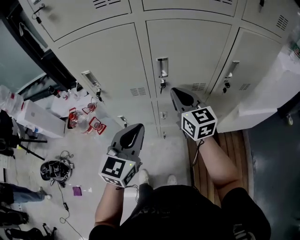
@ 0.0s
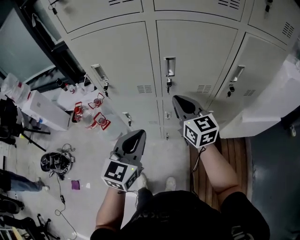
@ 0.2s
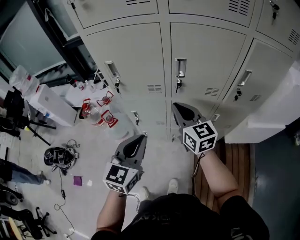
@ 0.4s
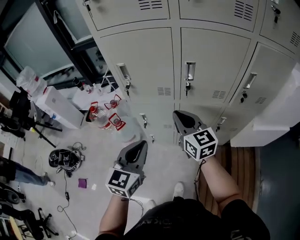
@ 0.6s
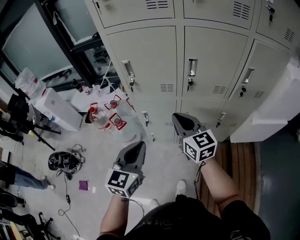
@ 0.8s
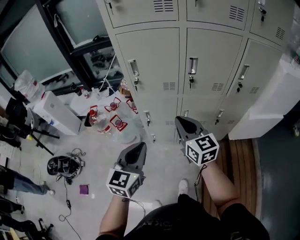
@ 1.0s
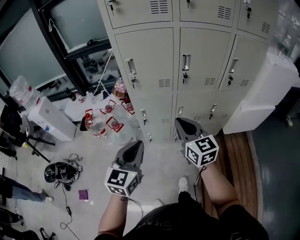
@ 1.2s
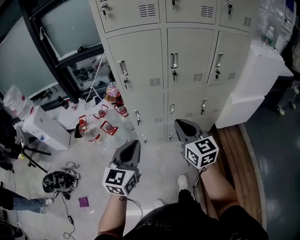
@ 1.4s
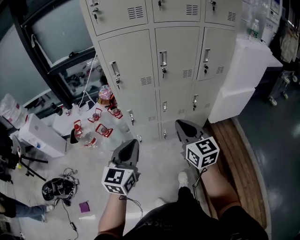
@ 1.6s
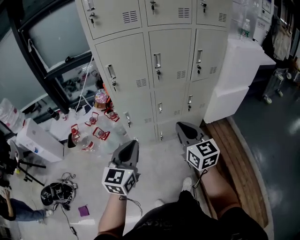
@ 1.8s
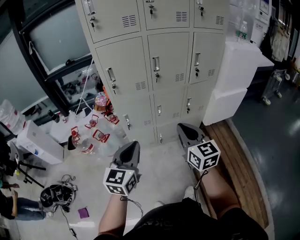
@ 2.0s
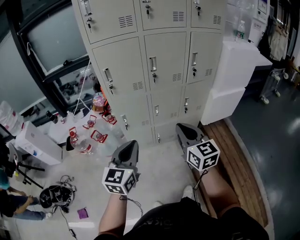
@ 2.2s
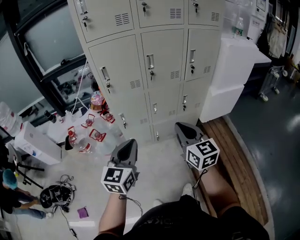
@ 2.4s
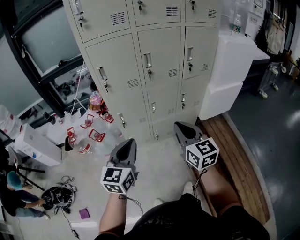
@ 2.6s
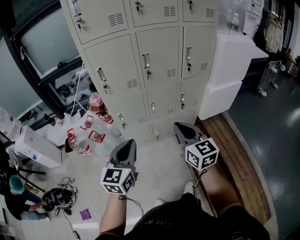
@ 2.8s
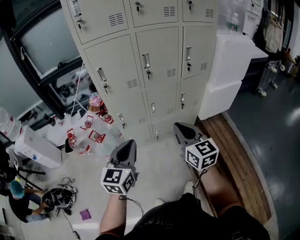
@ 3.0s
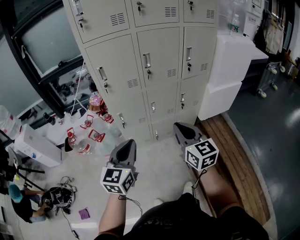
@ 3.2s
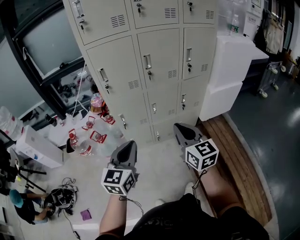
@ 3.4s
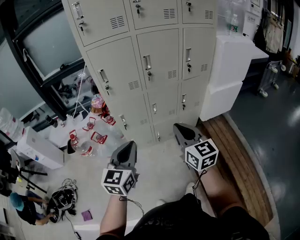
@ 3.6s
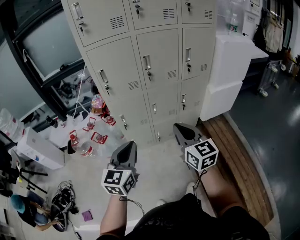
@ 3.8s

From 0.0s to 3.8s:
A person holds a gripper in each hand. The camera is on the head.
From 0.0s to 1.2s: The two grippers go about 25 cm backward and to the left.
From 1.2s to 2.6s: The right gripper travels backward and to the right by some 15 cm. The left gripper goes about 5 cm backward.
From 2.6s to 3.8s: The grippers move only a little.

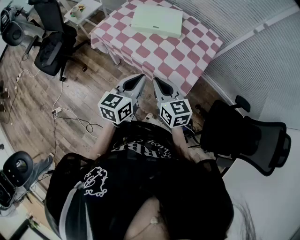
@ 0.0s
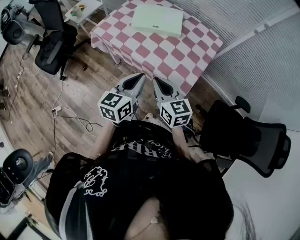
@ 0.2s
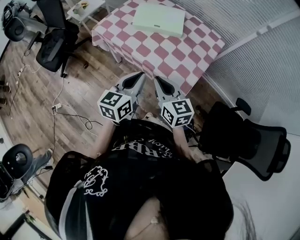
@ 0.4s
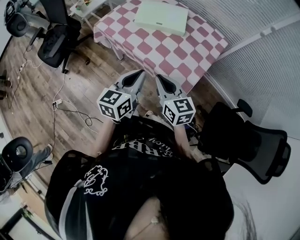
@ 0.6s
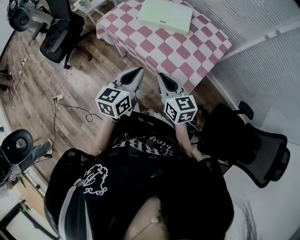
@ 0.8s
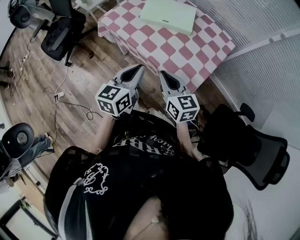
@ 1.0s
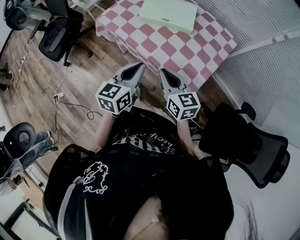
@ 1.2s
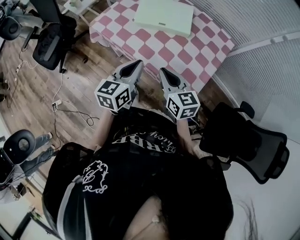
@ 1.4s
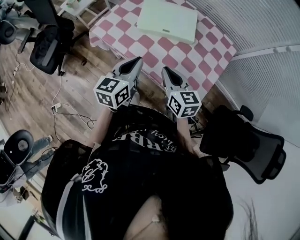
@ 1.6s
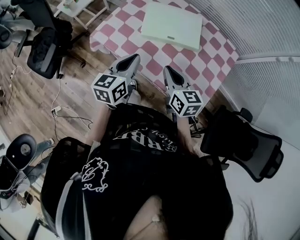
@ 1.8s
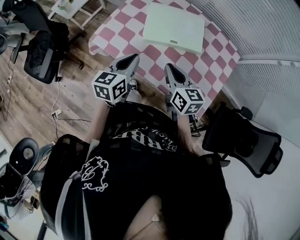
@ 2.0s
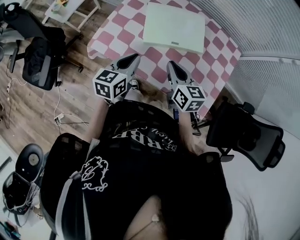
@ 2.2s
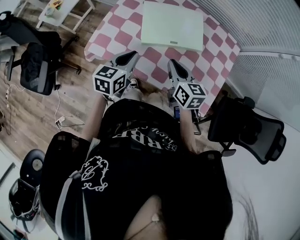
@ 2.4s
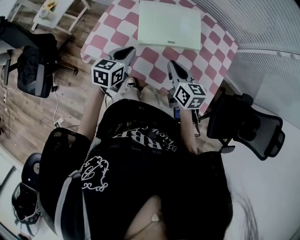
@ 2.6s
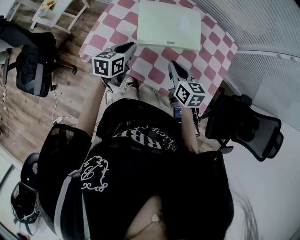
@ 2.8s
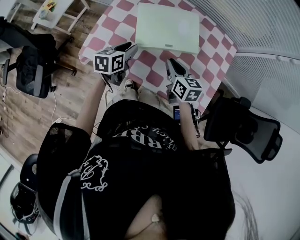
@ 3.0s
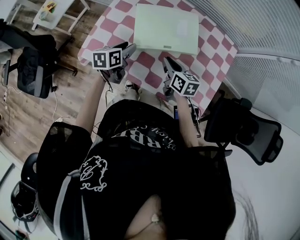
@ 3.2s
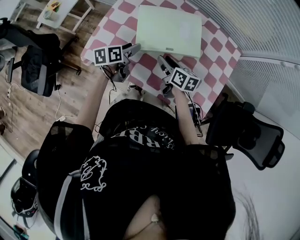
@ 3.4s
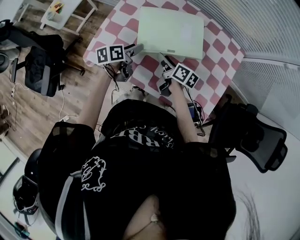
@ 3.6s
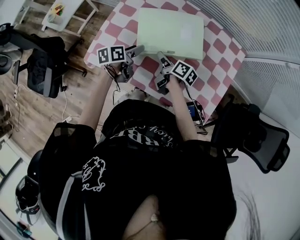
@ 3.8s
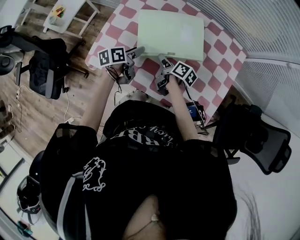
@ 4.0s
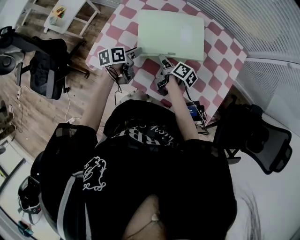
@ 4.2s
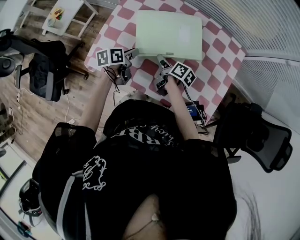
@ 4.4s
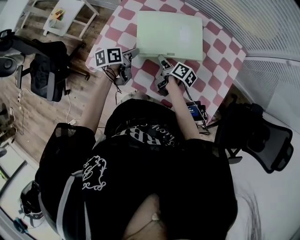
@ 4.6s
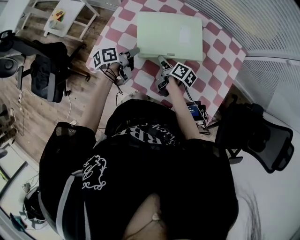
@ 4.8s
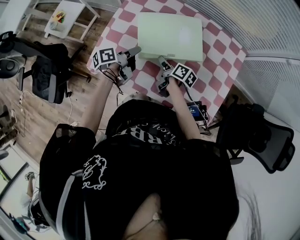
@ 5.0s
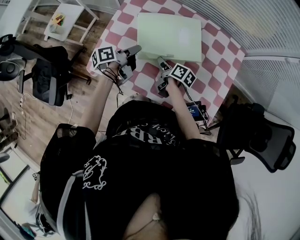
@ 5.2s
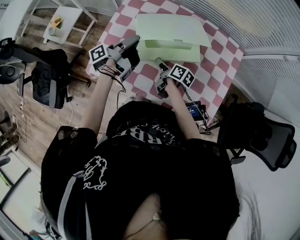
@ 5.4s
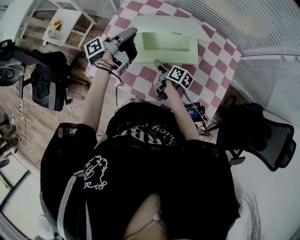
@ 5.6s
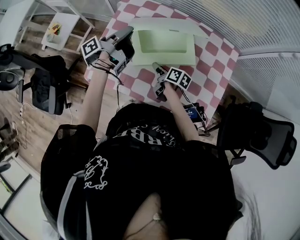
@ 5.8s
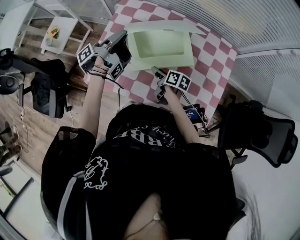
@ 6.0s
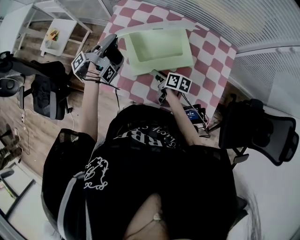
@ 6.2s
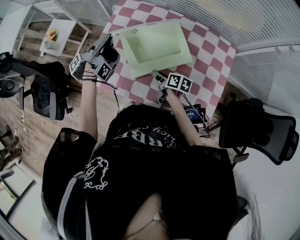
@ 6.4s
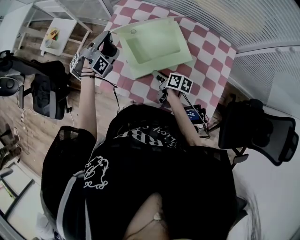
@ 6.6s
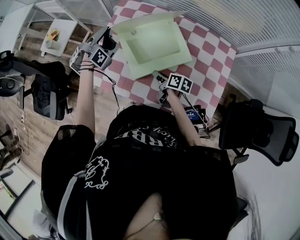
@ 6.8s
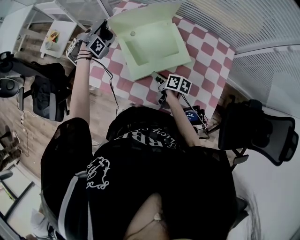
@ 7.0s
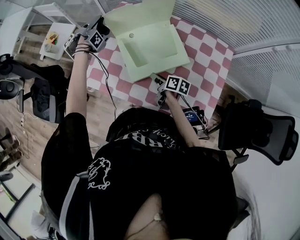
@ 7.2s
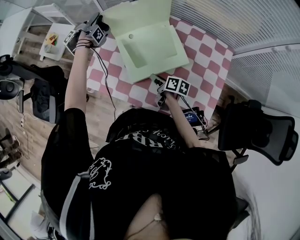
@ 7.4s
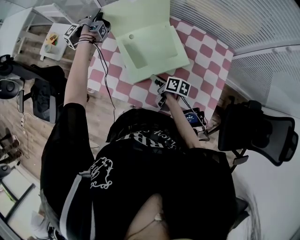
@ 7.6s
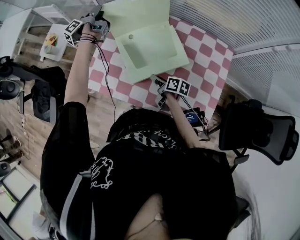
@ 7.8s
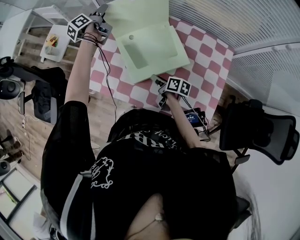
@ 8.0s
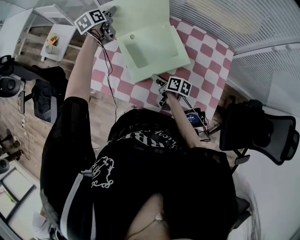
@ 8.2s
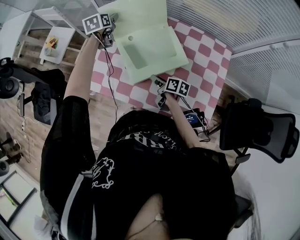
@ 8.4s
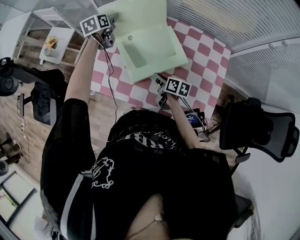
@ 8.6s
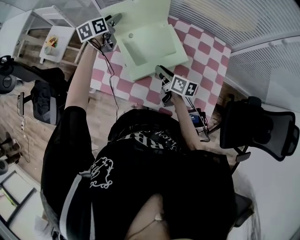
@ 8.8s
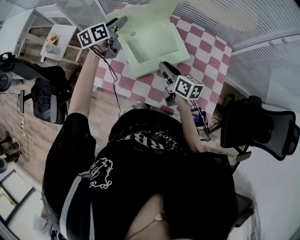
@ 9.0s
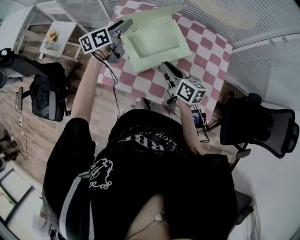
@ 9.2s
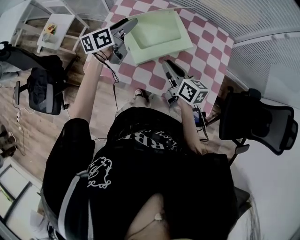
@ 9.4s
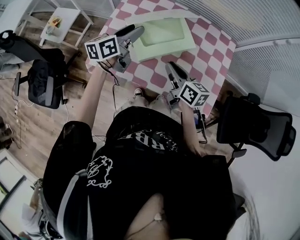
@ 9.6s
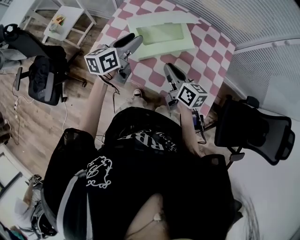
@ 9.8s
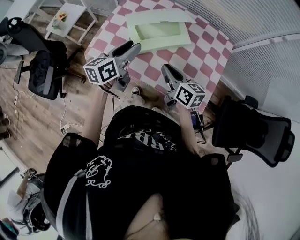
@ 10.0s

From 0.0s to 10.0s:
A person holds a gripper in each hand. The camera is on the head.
From 0.0s to 1.4s: Both grippers travel together forward, about 10 cm.
From 1.4s to 2.8s: The right gripper shifts roughly 20 cm forward, and swivels some 30 degrees. The left gripper travels forward, to the left and downward by some 30 cm, and rotates approximately 20 degrees.
From 2.8s to 4.2s: The right gripper heads downward and forward, covering roughly 15 cm, rolls clockwise, seen from behind, by about 50 degrees, and opens its fingers, while the left gripper is displaced downward and forward by approximately 10 cm, rotates roughly 30 degrees, and opens its fingers.
From 4.2s to 5.8s: The left gripper shifts about 20 cm upward and forward, tilts its fingers approximately 40 degrees upward, and closes its fingers.
From 5.8s to 7.2s: The left gripper goes roughly 15 cm forward and to the left, and rotates approximately 30 degrees.
From 7.2s to 8.6s: The right gripper closes; the left gripper is displaced to the right by some 5 cm, rotates around the line of its fingers by approximately 90 degrees, clockwise from behind, and opens.
From 8.6s to 10.0s: The left gripper shifts roughly 35 cm backward, and turns by about 30 degrees. The right gripper is displaced upward and backward by some 20 cm, and swivels some 30 degrees.

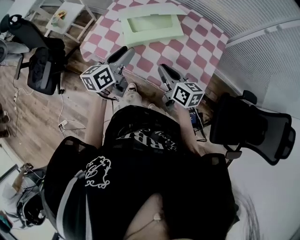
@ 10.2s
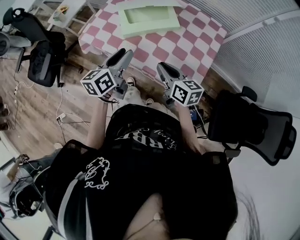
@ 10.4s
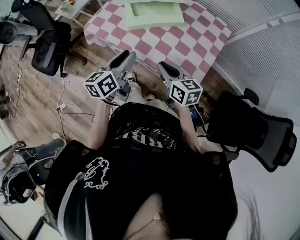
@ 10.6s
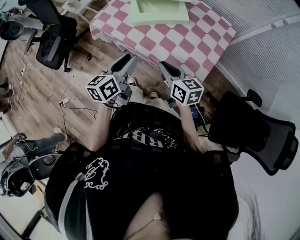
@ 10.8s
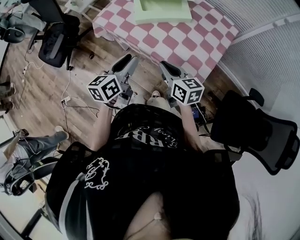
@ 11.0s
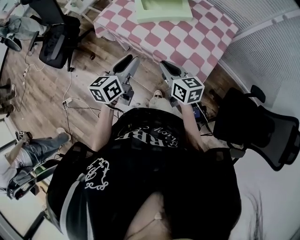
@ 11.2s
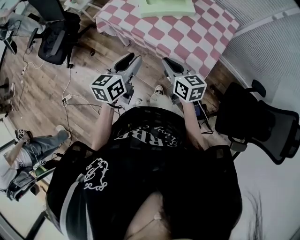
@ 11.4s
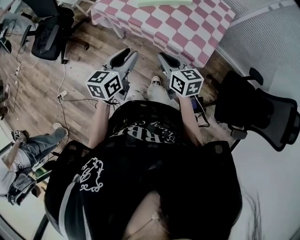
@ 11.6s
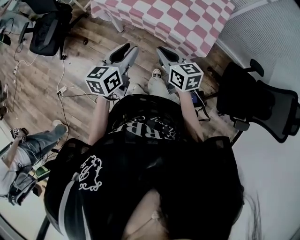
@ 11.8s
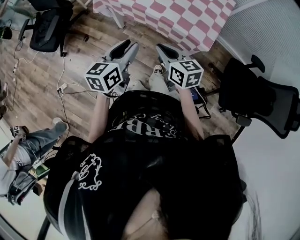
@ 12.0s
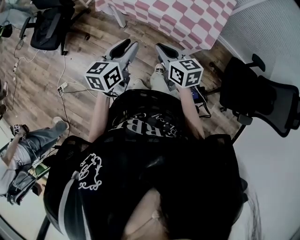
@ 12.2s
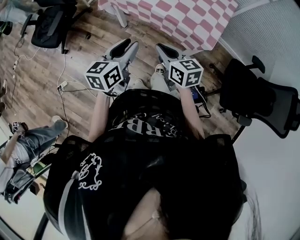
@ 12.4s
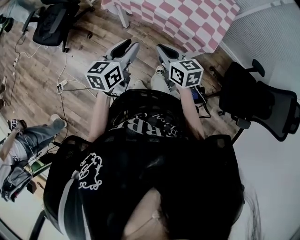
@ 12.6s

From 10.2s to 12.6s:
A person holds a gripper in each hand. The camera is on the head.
From 10.2s to 11.4s: Both grippers travel together backward, approximately 20 cm.
From 11.4s to 12.6s: Both grippers travel together backward and to the left, approximately 15 cm.

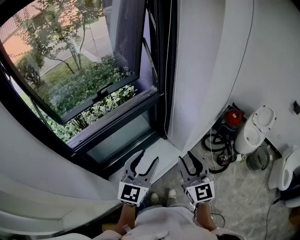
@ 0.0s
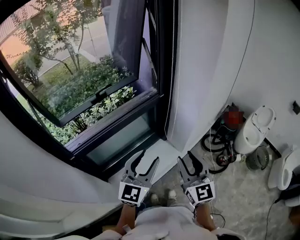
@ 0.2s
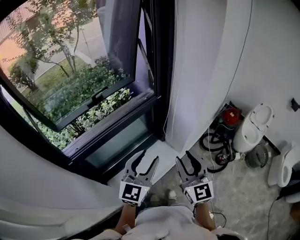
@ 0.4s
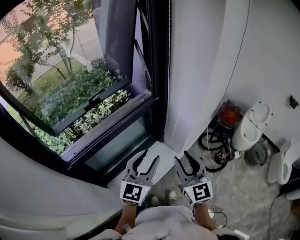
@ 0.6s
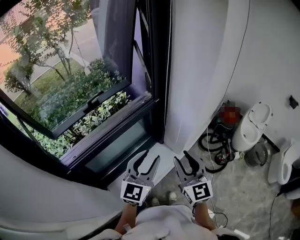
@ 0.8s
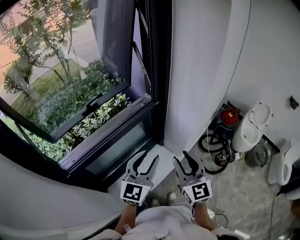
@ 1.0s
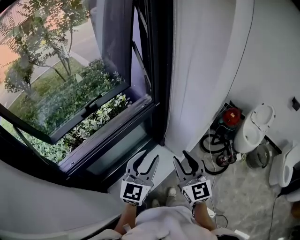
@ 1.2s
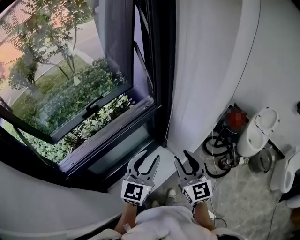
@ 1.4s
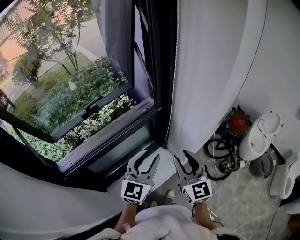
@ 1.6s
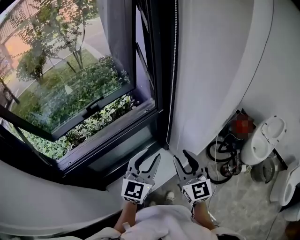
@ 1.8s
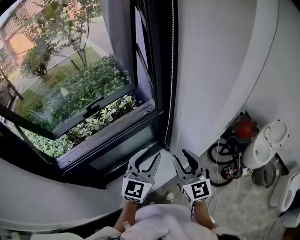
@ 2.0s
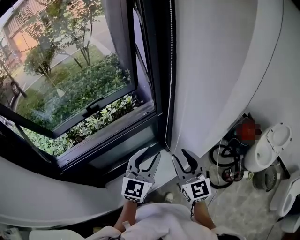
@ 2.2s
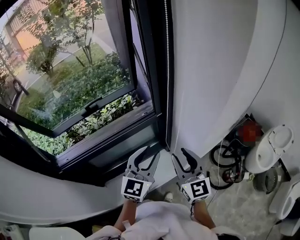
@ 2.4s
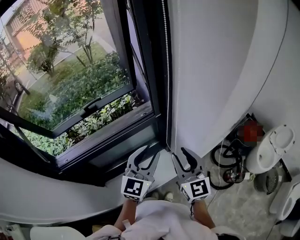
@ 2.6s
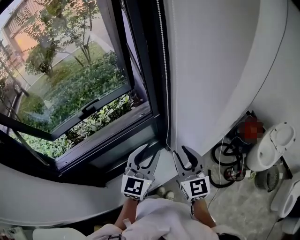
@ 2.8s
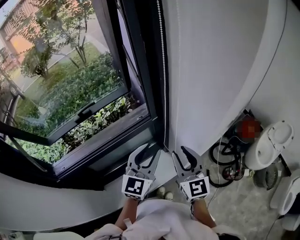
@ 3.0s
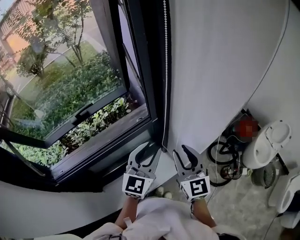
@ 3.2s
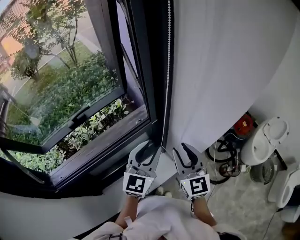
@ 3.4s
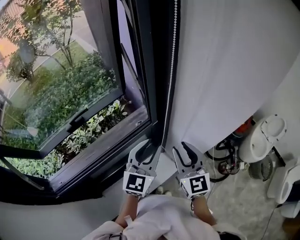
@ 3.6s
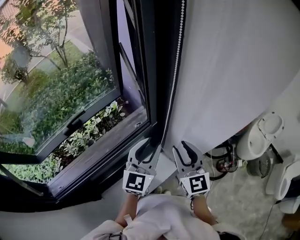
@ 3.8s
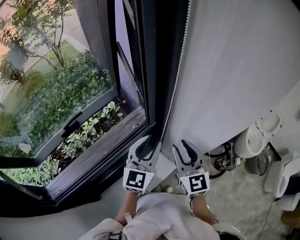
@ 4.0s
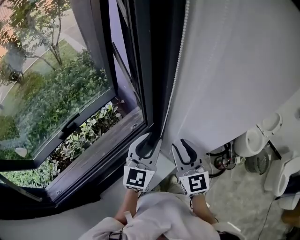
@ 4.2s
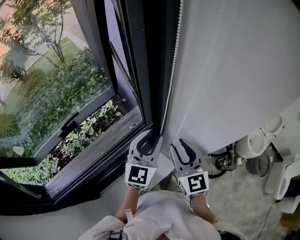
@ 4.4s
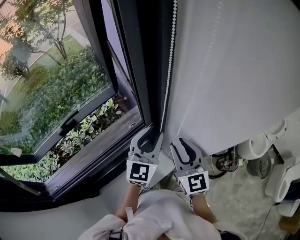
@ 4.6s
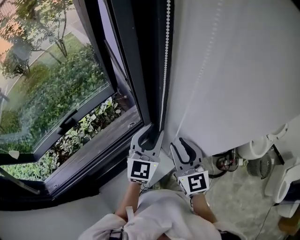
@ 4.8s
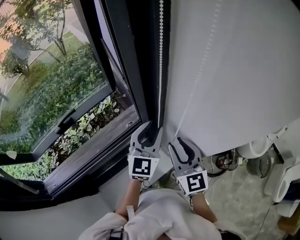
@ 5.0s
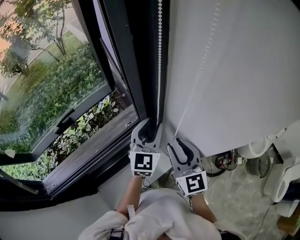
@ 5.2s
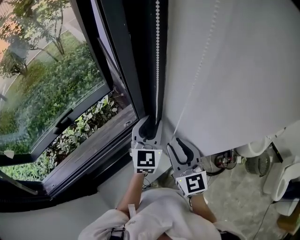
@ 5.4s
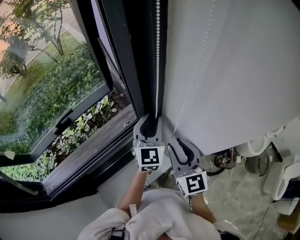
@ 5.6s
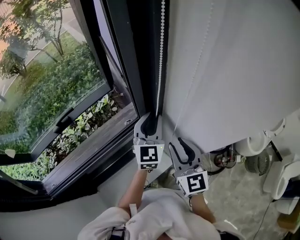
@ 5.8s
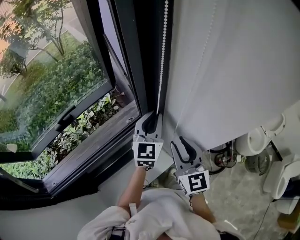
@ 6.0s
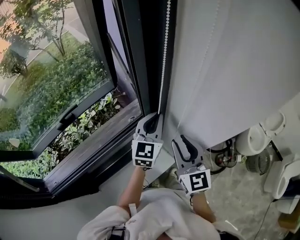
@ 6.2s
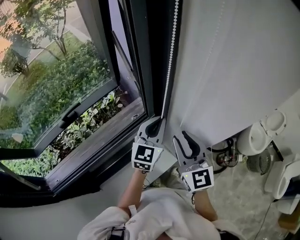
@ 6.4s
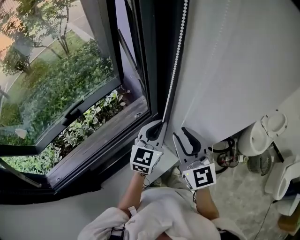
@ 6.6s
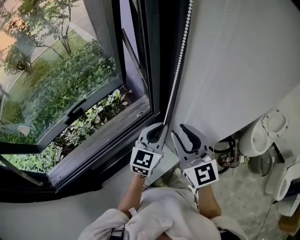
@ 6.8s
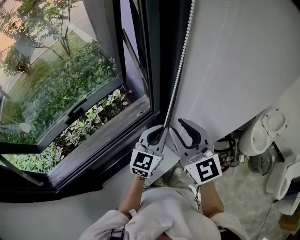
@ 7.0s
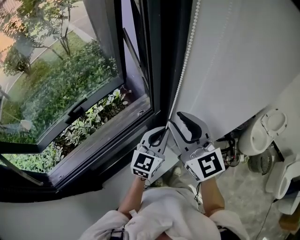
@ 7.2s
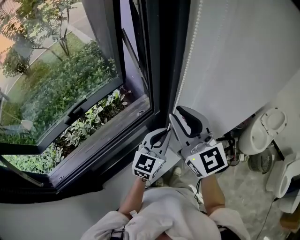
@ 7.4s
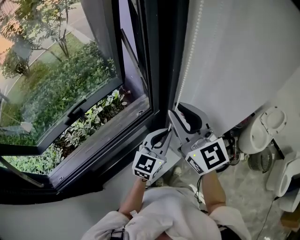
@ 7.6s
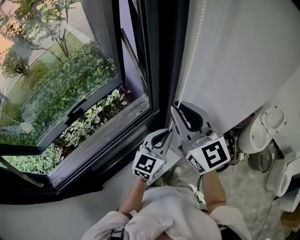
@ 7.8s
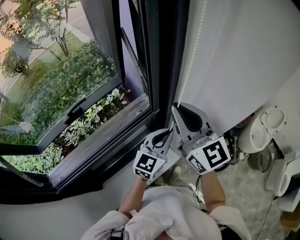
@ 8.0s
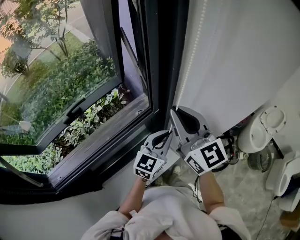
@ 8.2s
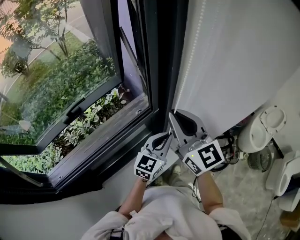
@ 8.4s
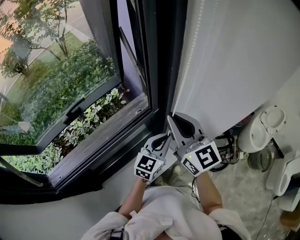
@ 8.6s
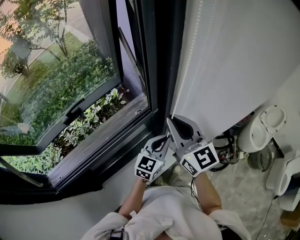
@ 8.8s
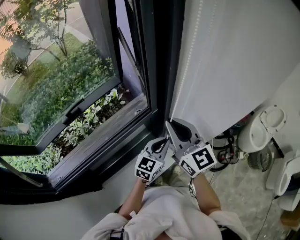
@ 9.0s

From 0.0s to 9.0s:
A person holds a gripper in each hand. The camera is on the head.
From 0.0s to 1.6s: Both grippers travel together forward, approximately 15 cm.
From 1.6s to 3.0s: Both grippers travel together forward and to the right, some 10 cm.
From 3.0s to 4.4s: The two grippers go approximately 10 cm forward.
From 4.4s to 6.0s: The left gripper goes about 5 cm forward.
From 6.0s to 7.6s: The left gripper moves backward, about 10 cm. Meanwhile the right gripper is displaced upward and to the left by about 15 cm.
From 7.6s to 9.0s: The grippers both shift downward by about 10 cm.
